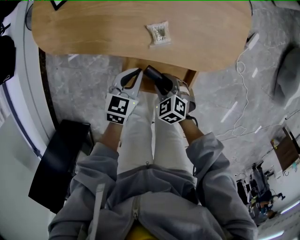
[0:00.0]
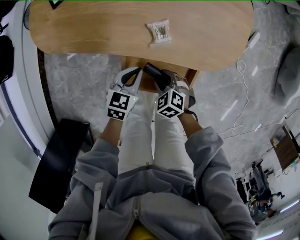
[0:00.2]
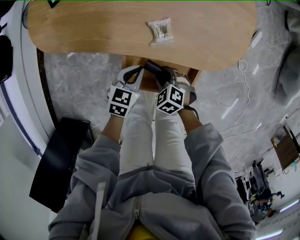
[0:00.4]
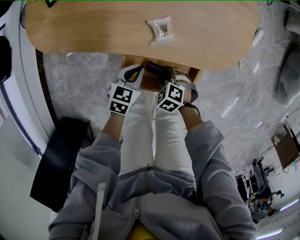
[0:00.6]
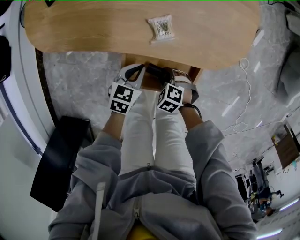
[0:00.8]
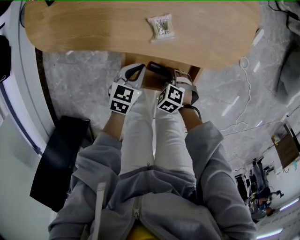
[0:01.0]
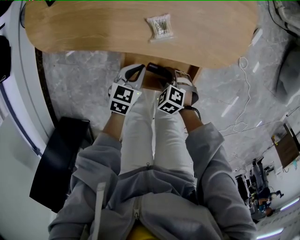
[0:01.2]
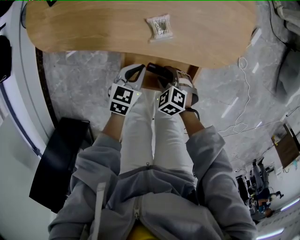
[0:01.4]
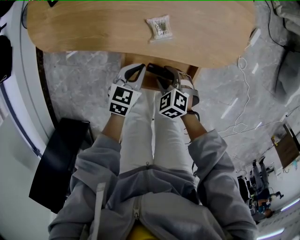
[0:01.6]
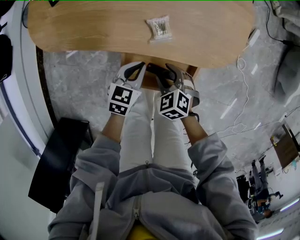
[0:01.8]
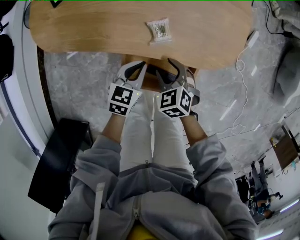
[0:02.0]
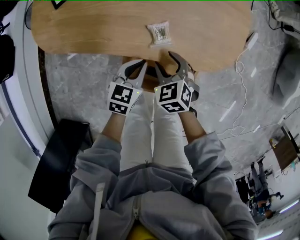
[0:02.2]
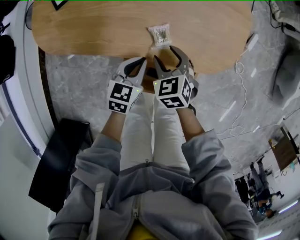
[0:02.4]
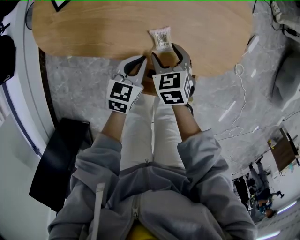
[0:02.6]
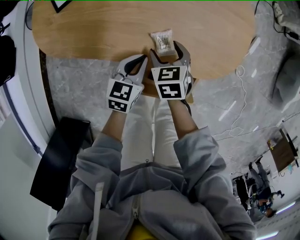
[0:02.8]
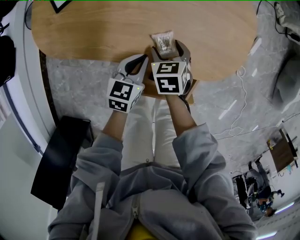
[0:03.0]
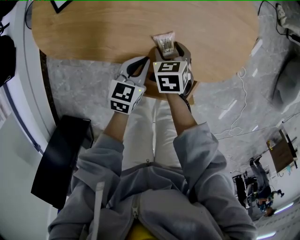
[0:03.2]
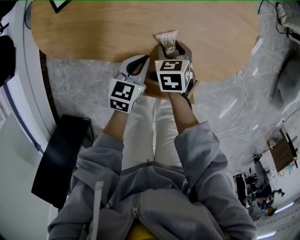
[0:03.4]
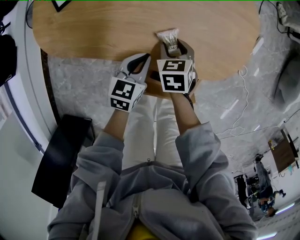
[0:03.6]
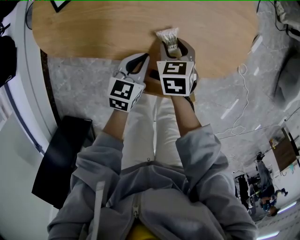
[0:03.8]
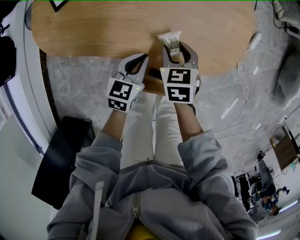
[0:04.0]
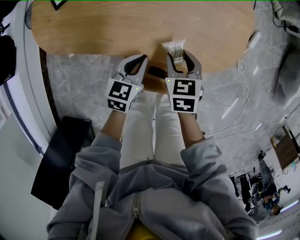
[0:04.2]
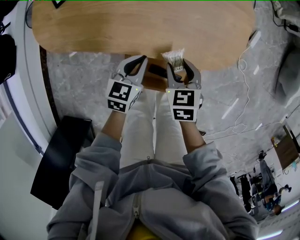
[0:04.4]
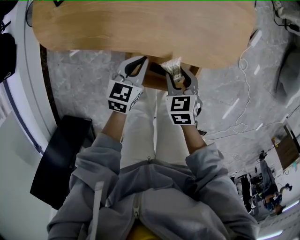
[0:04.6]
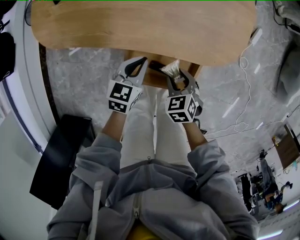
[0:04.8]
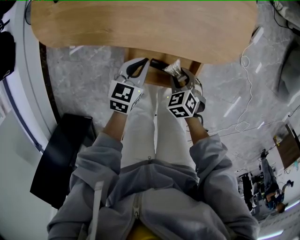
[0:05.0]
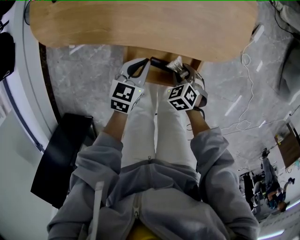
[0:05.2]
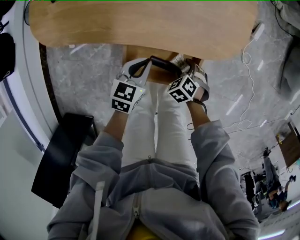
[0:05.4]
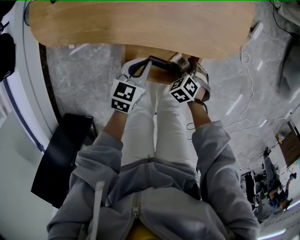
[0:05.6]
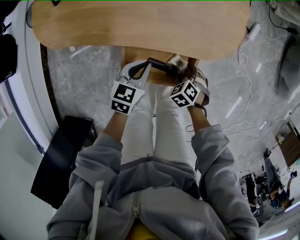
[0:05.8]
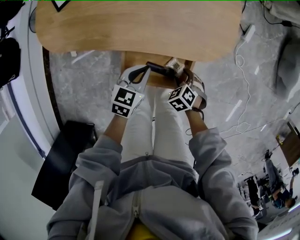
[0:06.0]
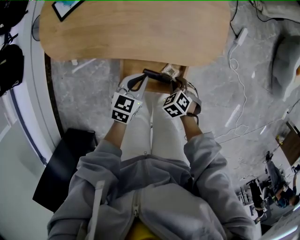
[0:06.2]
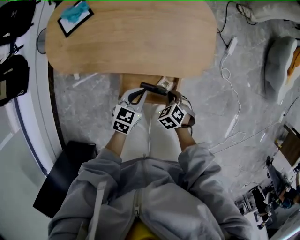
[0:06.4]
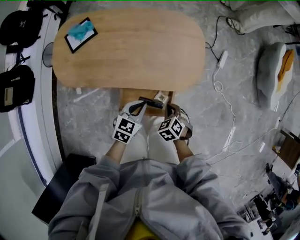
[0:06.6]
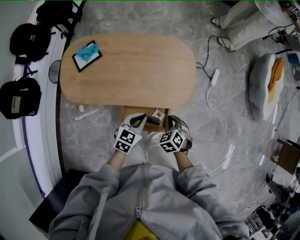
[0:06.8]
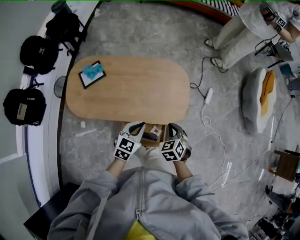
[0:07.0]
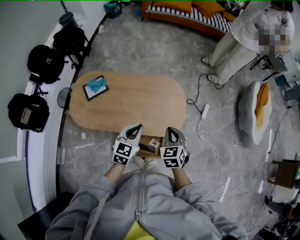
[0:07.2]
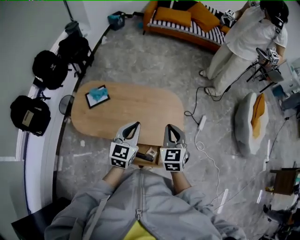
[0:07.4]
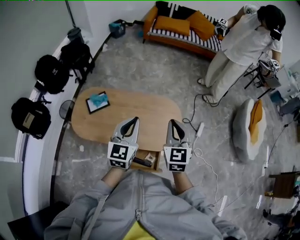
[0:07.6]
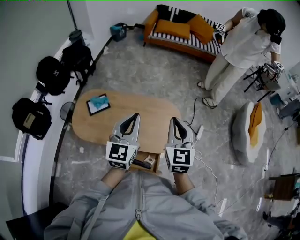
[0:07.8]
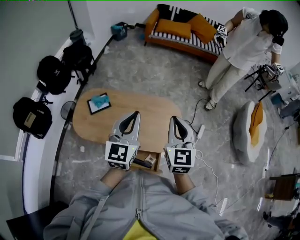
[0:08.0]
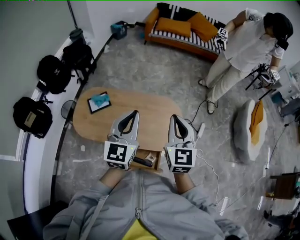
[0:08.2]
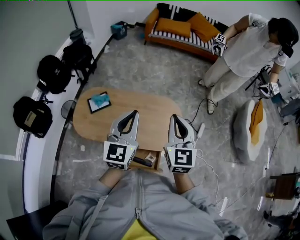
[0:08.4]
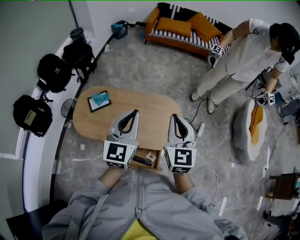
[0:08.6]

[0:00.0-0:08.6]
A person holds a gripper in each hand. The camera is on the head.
0:00.0 to 0:01.4: The left gripper goes roughly 5 cm downward.
0:01.4 to 0:02.8: The left gripper heads forward and upward, covering roughly 10 cm, while the right gripper shifts approximately 20 cm forward and upward, and rotates approximately 40 degrees.
0:02.8 to 0:04.4: The right gripper is displaced backward and to the right by about 10 cm, and closes up.
0:04.4 to 0:05.8: The left gripper ends up some 5 cm from where it was. Meanwhile the right gripper shifts by approximately 20 cm, rotates about 40 degrees, and opens.
0:05.8 to 0:07.2: Both grippers travel together upward, approximately 40 cm. The left gripper changes its angle by about 20 degrees; the right gripper tips its fingers upward by roughly 40 degrees, and closes up.
0:07.2 to 0:08.6: Both grippers move upward, roughly 25 cm. The right gripper tilts its fingers approximately 40 degrees upward. Meanwhile the left gripper turns by some 30 degrees.

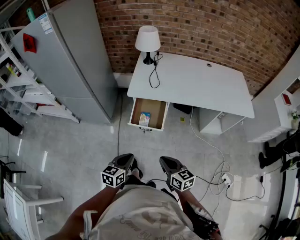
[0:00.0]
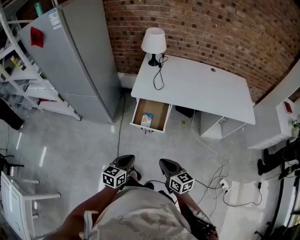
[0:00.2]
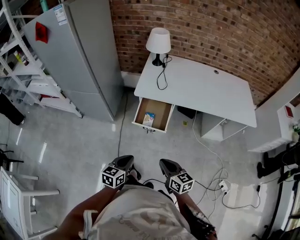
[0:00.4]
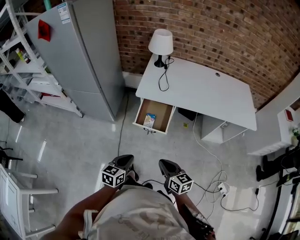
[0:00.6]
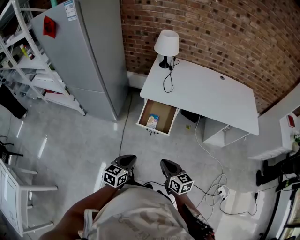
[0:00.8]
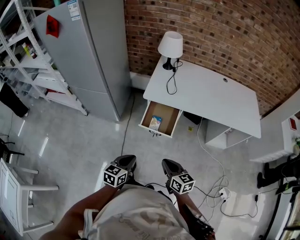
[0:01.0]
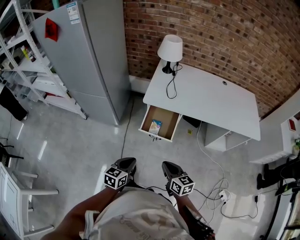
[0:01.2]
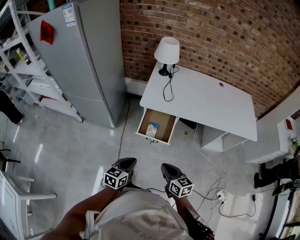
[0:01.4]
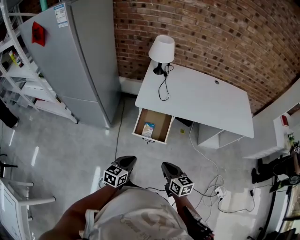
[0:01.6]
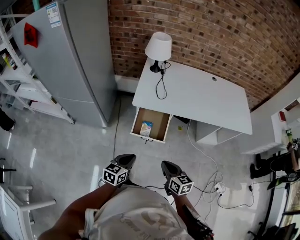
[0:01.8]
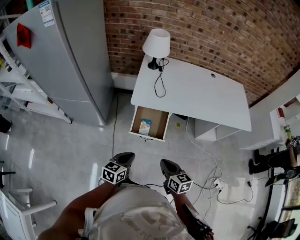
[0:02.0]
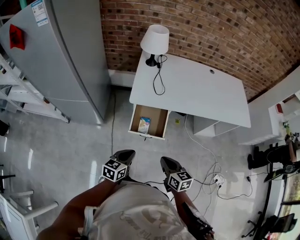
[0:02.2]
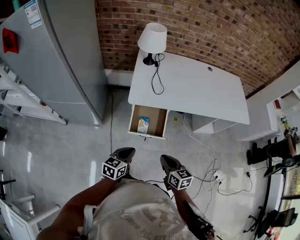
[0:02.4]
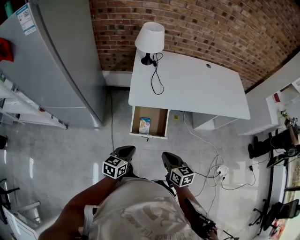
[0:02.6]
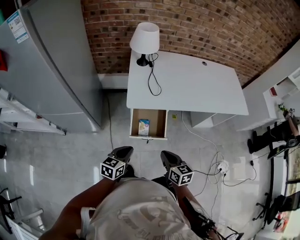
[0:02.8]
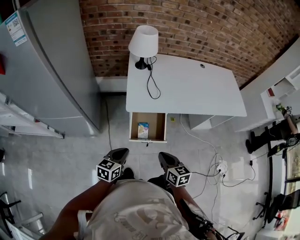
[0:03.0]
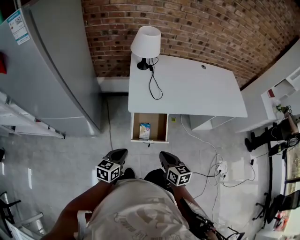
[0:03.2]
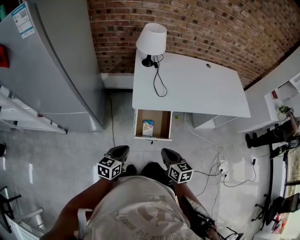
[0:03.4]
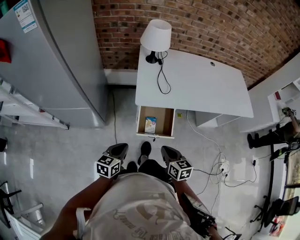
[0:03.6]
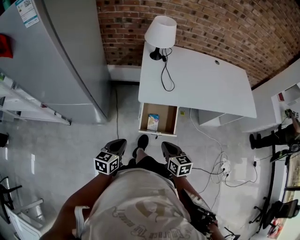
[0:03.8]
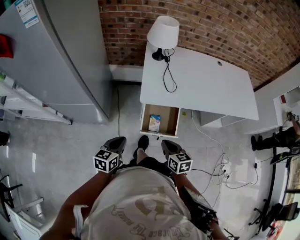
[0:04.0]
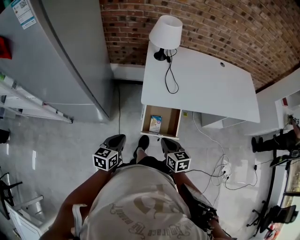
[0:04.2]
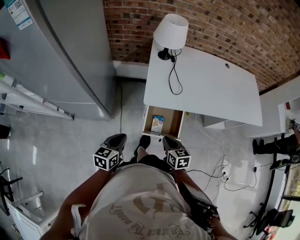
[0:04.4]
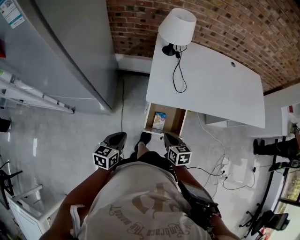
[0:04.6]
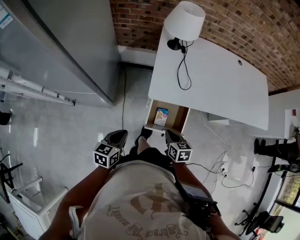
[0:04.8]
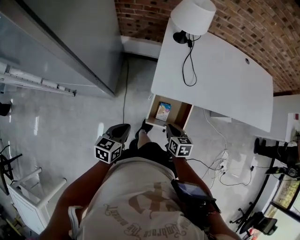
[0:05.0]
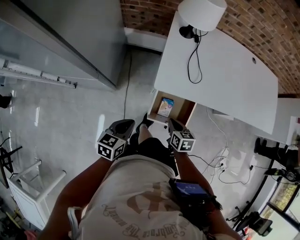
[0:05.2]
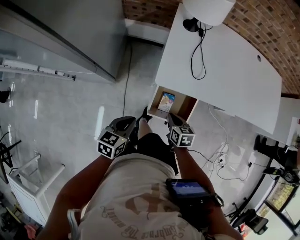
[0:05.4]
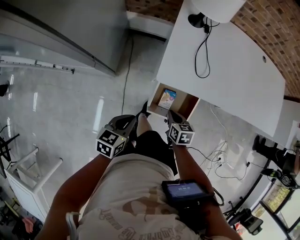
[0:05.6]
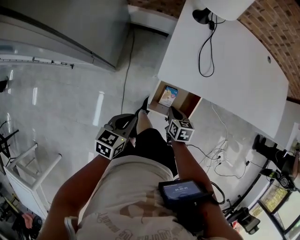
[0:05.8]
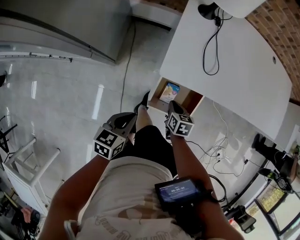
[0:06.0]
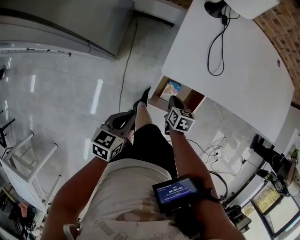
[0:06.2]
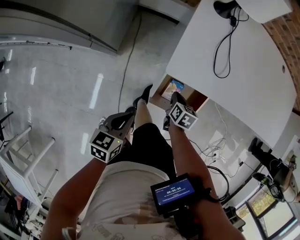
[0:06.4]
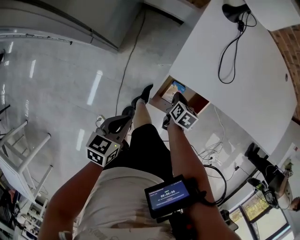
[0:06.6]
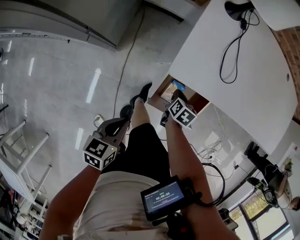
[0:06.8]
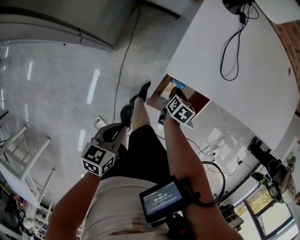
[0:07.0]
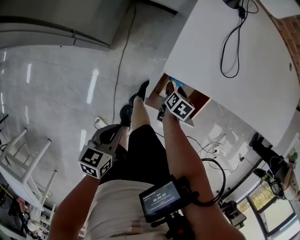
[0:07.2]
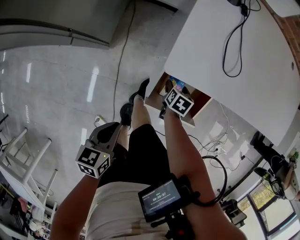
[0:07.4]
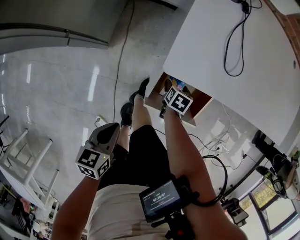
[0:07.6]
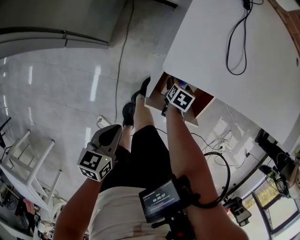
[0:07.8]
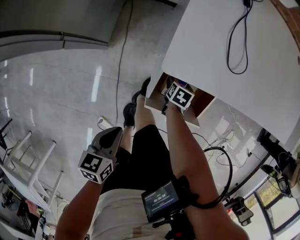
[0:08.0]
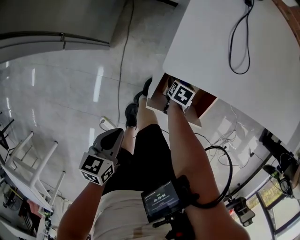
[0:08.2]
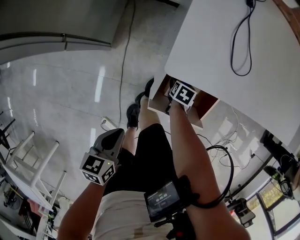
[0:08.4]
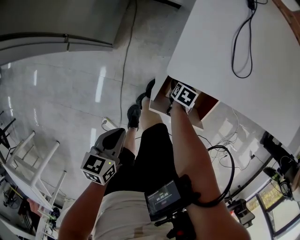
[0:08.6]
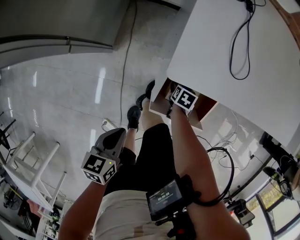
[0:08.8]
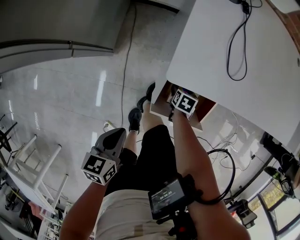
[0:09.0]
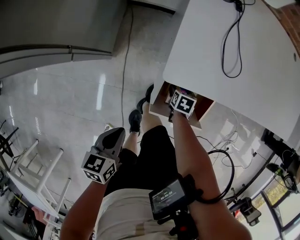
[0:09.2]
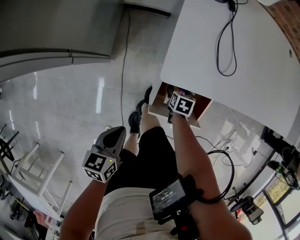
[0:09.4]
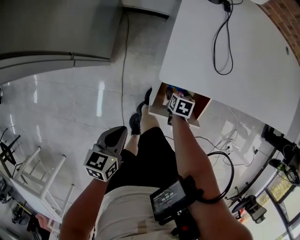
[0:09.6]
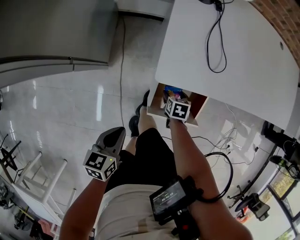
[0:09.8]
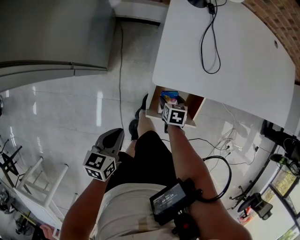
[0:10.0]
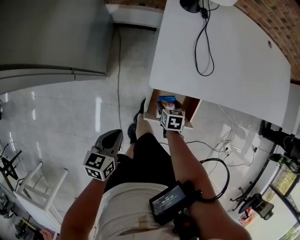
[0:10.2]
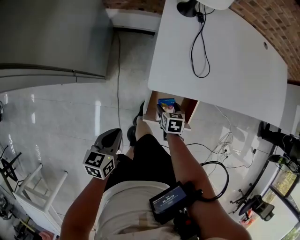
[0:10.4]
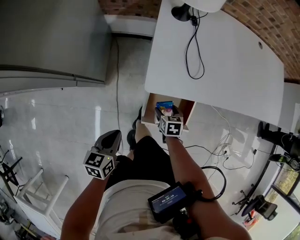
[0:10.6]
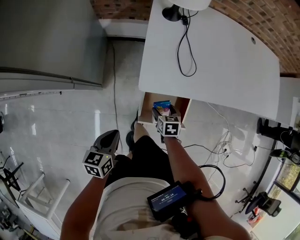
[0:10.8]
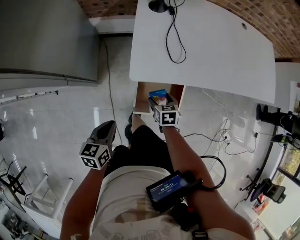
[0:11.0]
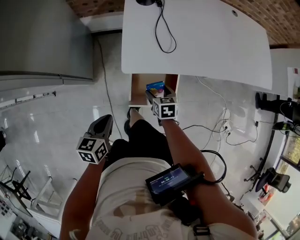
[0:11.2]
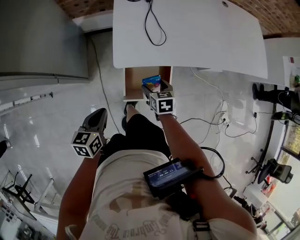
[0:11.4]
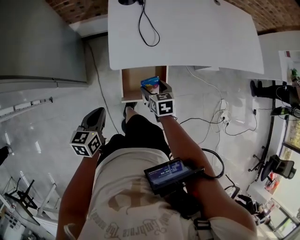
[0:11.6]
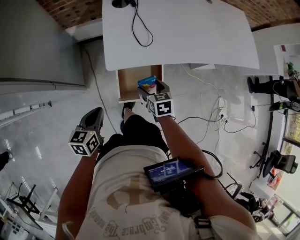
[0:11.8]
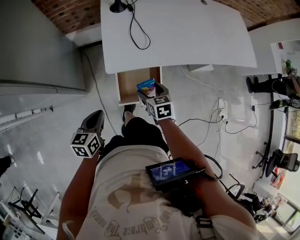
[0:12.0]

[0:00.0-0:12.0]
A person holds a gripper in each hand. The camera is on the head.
0:00.0 to 0:01.6: Both grippers travel together forward, approximately 5 cm.
0:01.6 to 0:03.0: Both grippers move forward and to the left, about 15 cm.
0:03.0 to 0:04.4: The left gripper travels to the left and forward by about 10 cm; the right gripper is displaced forward, to the left and downward by some 10 cm.
0:04.4 to 0:06.0: The left gripper shifts some 10 cm downward and forward, while the right gripper shifts roughly 20 cm downward and forward.
0:06.0 to 0:07.6: The left gripper heads downward, covering some 10 cm. The right gripper shifts roughly 15 cm downward, changes its angle by some 20 degrees, and opens up.
0:07.6 to 0:09.0: The grippers move only a little.
0:09.0 to 0:10.4: The right gripper moves upward, some 15 cm; the left gripper goes roughly 5 cm upward.
0:10.4 to 0:12.0: The right gripper is displaced upward by about 15 cm, while the left gripper goes approximately 10 cm upward and to the right.

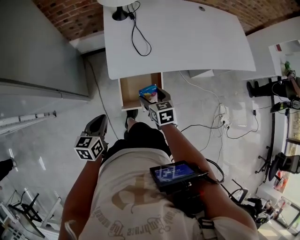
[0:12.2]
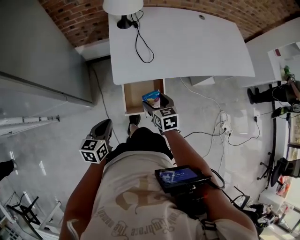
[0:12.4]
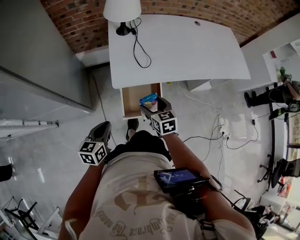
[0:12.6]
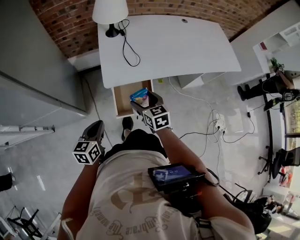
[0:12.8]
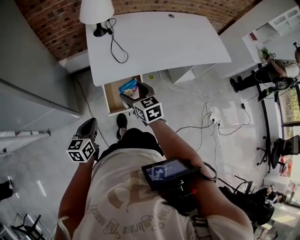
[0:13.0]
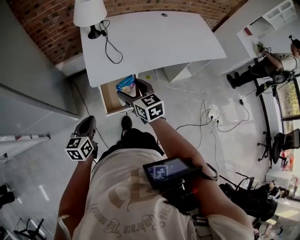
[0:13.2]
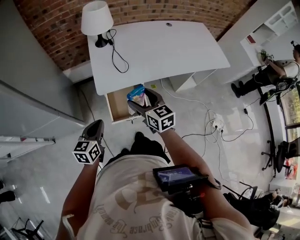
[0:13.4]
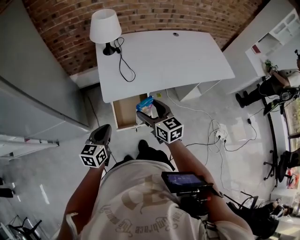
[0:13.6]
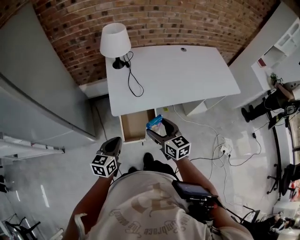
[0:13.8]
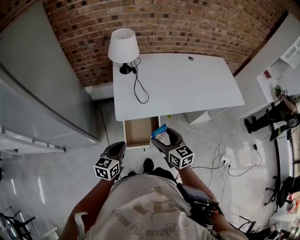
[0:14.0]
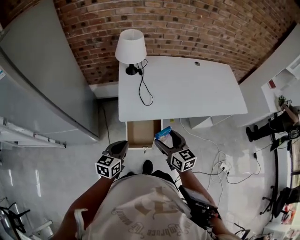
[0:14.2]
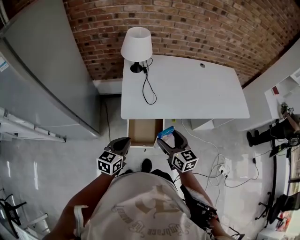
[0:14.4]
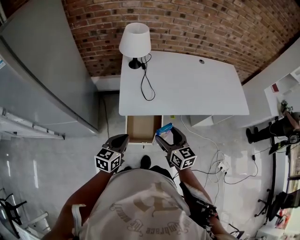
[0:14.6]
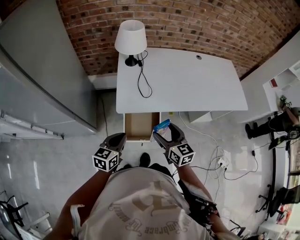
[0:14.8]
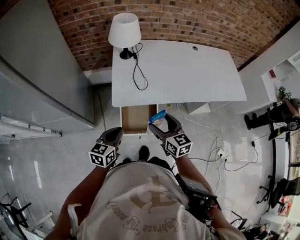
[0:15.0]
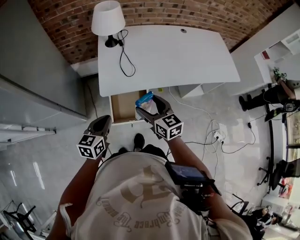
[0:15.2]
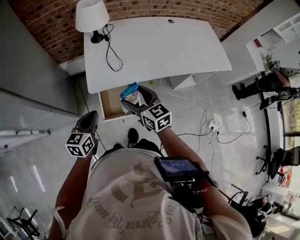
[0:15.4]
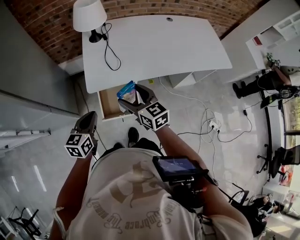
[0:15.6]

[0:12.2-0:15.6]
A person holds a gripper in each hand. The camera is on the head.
0:12.2 to 0:13.8: The right gripper travels upward by roughly 20 cm, and changes its angle by roughly 30 degrees; the left gripper heads upward and to the right, covering about 10 cm.
0:13.8 to 0:15.6: The grippers move only a little.
